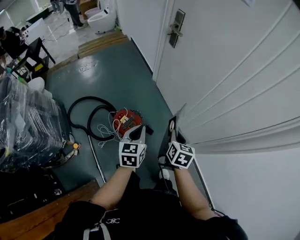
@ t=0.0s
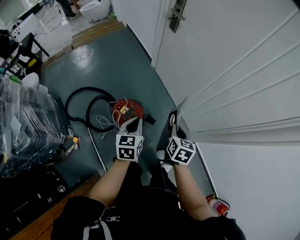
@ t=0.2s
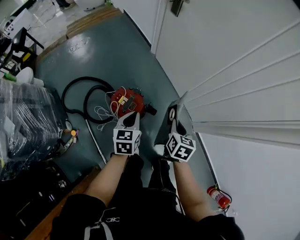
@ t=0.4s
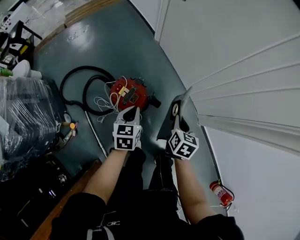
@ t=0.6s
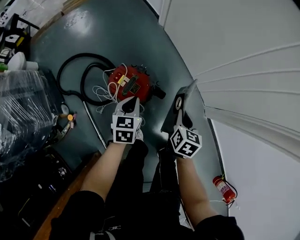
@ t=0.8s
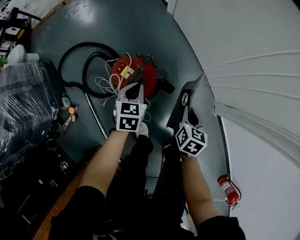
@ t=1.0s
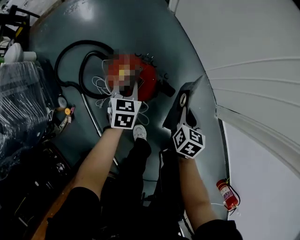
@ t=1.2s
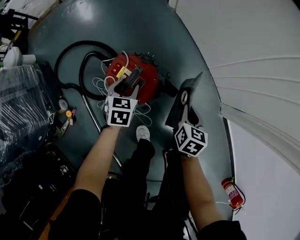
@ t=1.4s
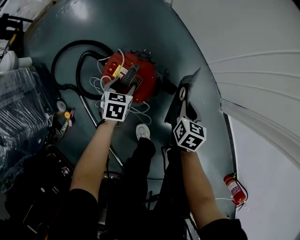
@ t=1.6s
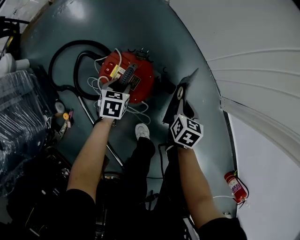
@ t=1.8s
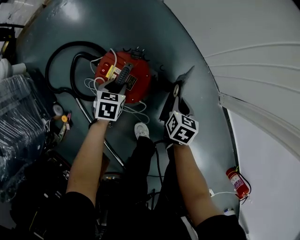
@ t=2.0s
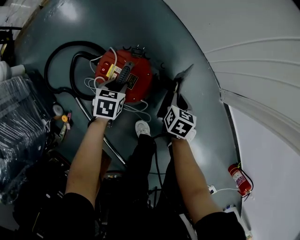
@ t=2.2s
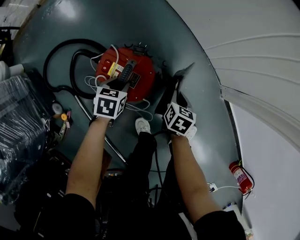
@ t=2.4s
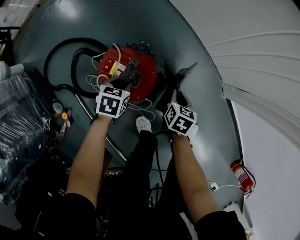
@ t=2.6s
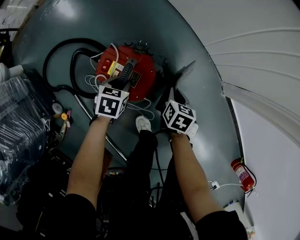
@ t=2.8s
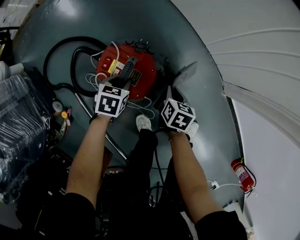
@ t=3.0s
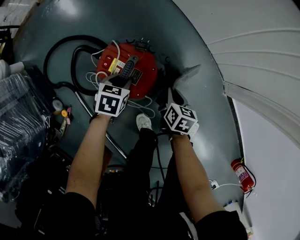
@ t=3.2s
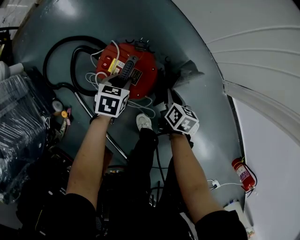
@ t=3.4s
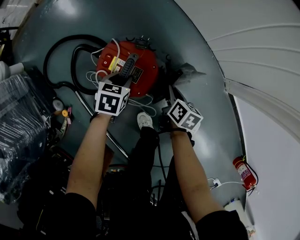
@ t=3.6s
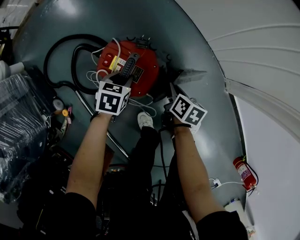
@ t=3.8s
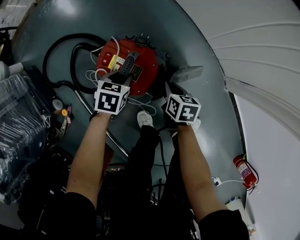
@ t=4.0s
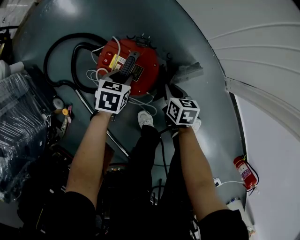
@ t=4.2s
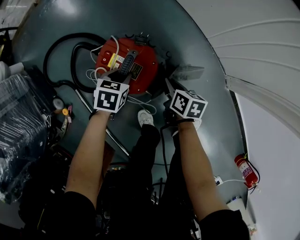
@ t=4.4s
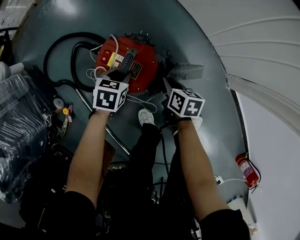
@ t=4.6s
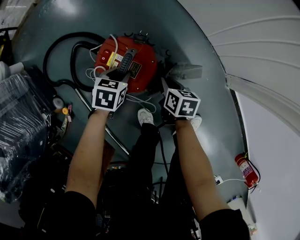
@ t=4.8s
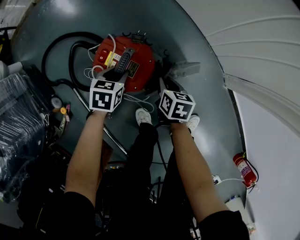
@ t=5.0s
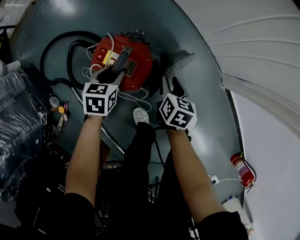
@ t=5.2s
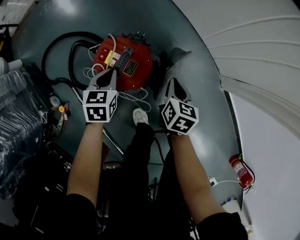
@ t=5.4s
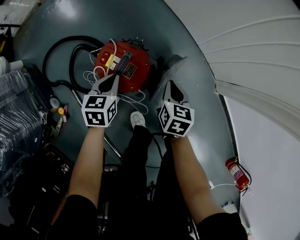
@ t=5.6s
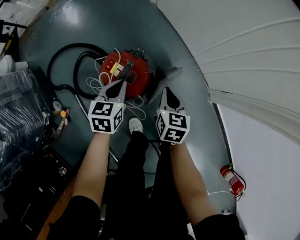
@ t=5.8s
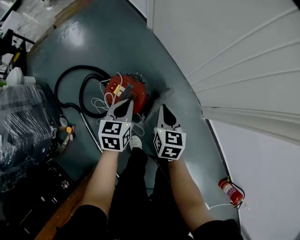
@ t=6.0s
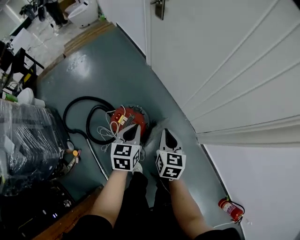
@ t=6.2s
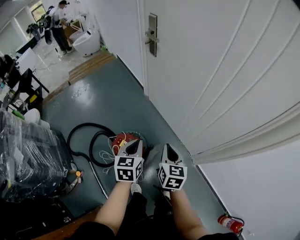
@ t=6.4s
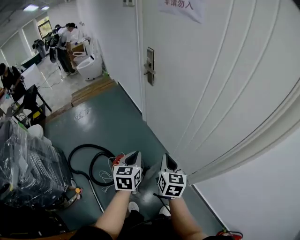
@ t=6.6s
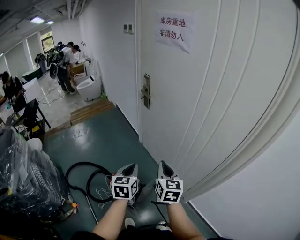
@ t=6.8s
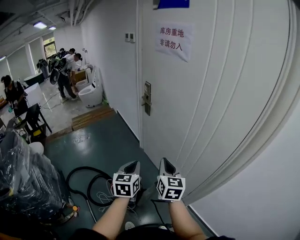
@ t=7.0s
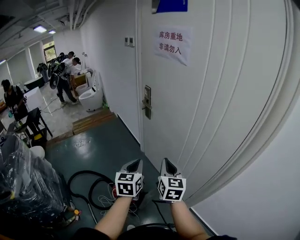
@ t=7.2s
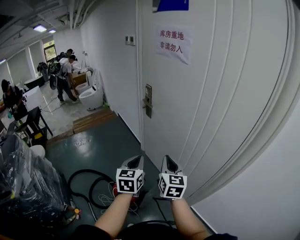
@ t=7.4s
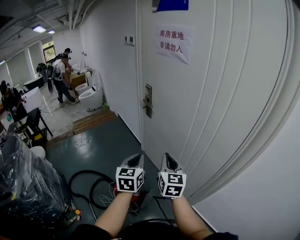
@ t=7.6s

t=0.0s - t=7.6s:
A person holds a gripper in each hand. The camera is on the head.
t=0.0s - t=1.6s: Both grippers travel together downward, about 40 cm. The left gripper tips its fingers downward by roughly 30 degrees, and opens its fingers.
t=1.6s - t=3.0s: The left gripper closes up; the right gripper travels downward and to the left by approximately 10 cm.
t=3.0s - t=4.6s: There are only small adjustments of the grippers.
t=4.6s - t=6.0s: Both grippers travel together upward, approximately 25 cm. The left gripper swivels approximately 30 degrees, and closes up. The right gripper swivels about 30 degrees, and opens, then closes again.
t=6.0s - t=7.6s: The grippers both shift upward by some 40 cm. The right gripper swivels some 30 degrees. Meanwhile the left gripper swivels about 20 degrees.

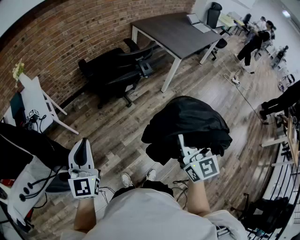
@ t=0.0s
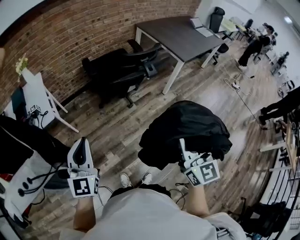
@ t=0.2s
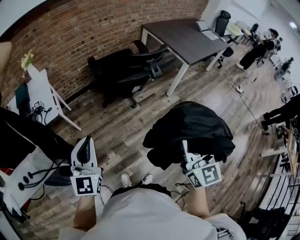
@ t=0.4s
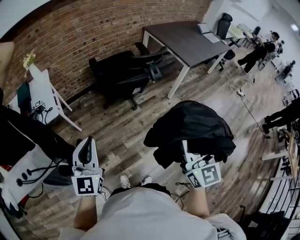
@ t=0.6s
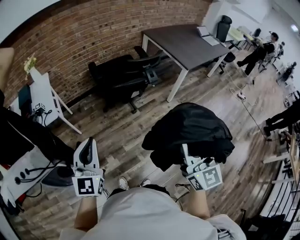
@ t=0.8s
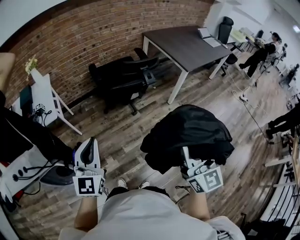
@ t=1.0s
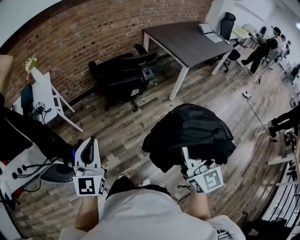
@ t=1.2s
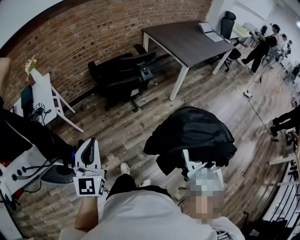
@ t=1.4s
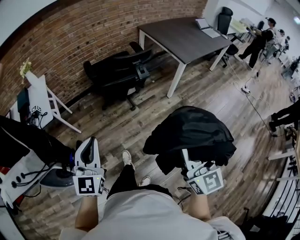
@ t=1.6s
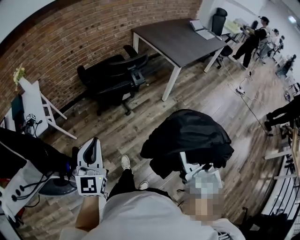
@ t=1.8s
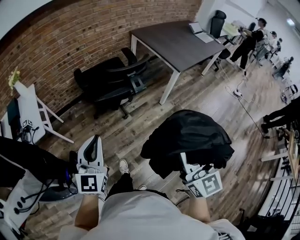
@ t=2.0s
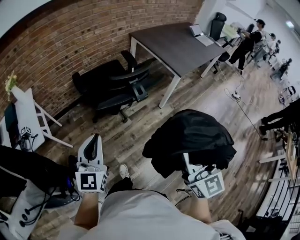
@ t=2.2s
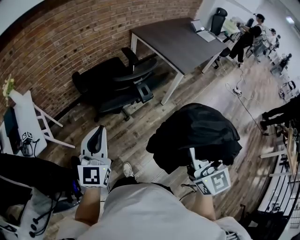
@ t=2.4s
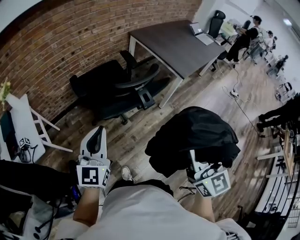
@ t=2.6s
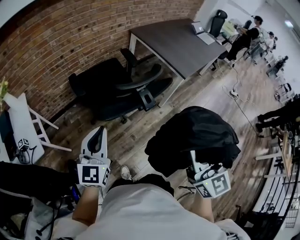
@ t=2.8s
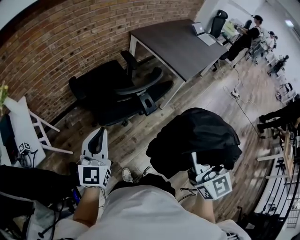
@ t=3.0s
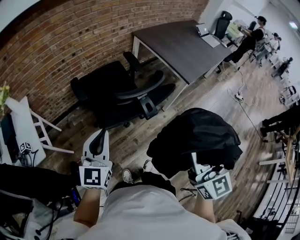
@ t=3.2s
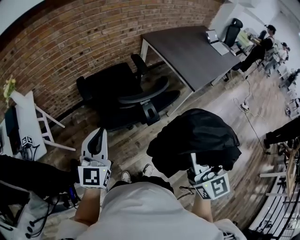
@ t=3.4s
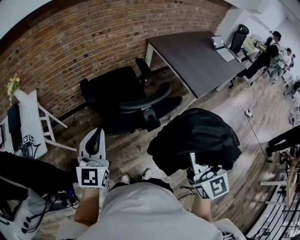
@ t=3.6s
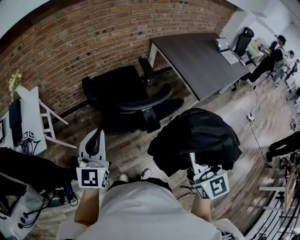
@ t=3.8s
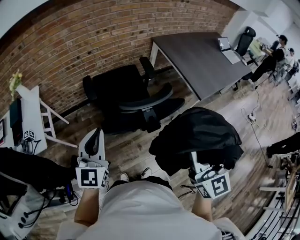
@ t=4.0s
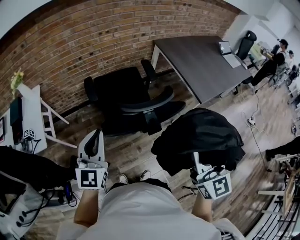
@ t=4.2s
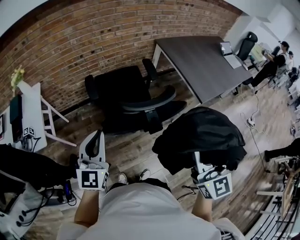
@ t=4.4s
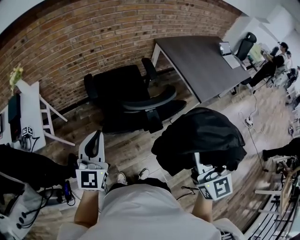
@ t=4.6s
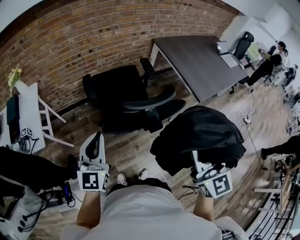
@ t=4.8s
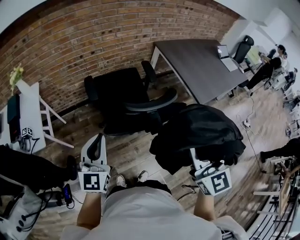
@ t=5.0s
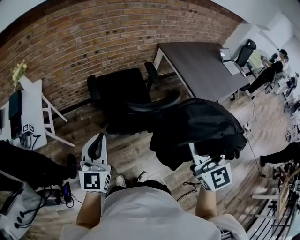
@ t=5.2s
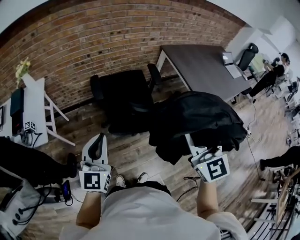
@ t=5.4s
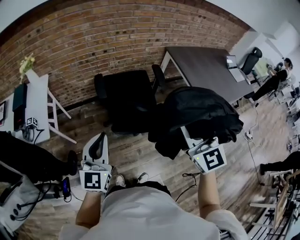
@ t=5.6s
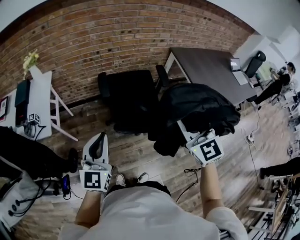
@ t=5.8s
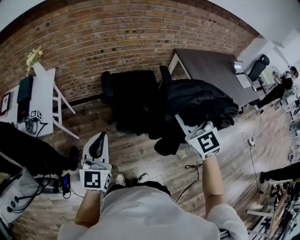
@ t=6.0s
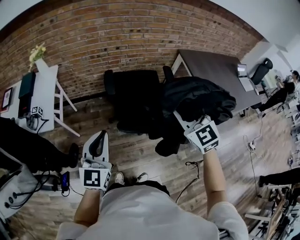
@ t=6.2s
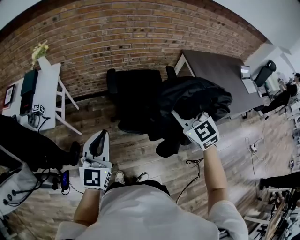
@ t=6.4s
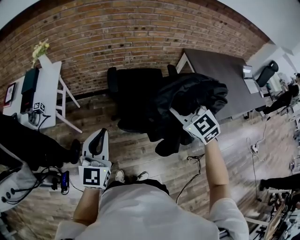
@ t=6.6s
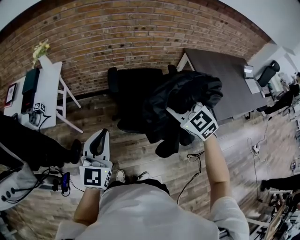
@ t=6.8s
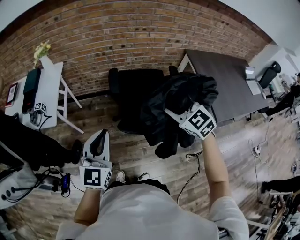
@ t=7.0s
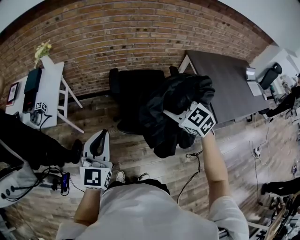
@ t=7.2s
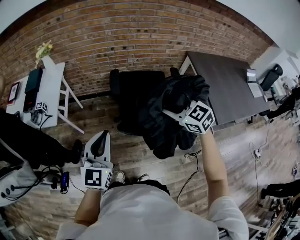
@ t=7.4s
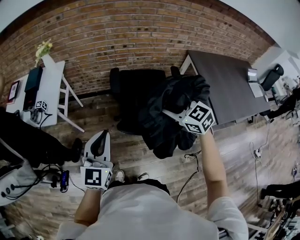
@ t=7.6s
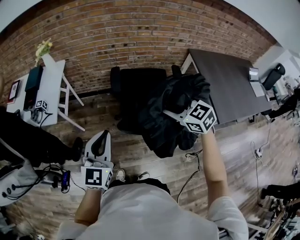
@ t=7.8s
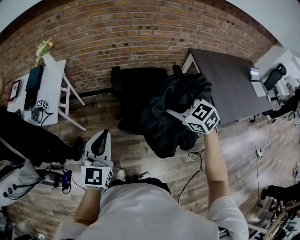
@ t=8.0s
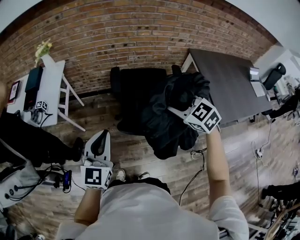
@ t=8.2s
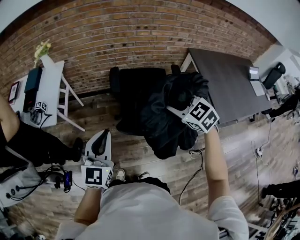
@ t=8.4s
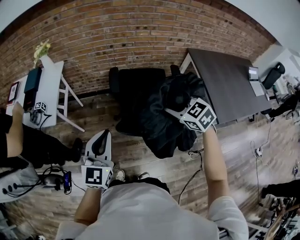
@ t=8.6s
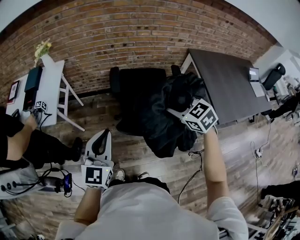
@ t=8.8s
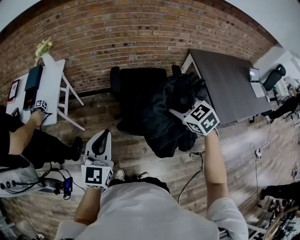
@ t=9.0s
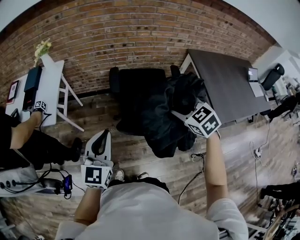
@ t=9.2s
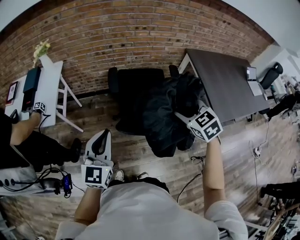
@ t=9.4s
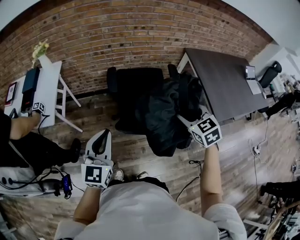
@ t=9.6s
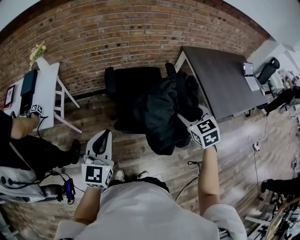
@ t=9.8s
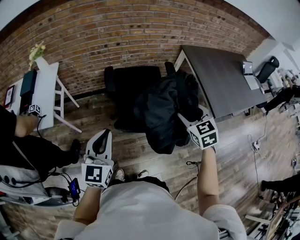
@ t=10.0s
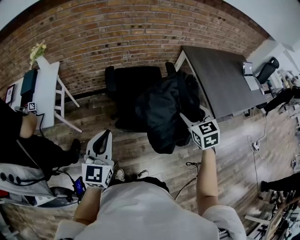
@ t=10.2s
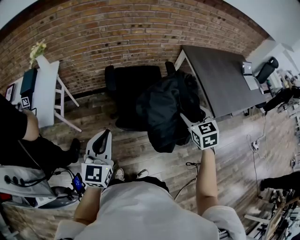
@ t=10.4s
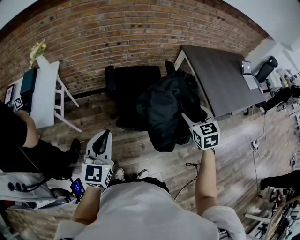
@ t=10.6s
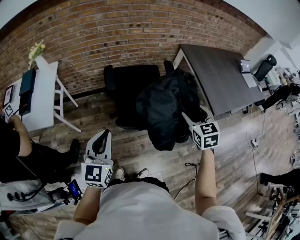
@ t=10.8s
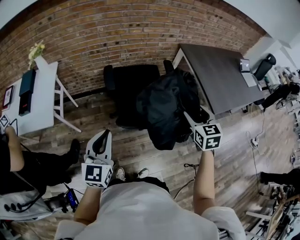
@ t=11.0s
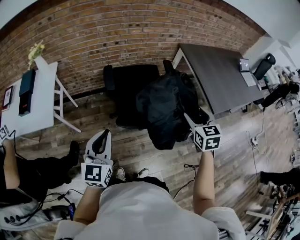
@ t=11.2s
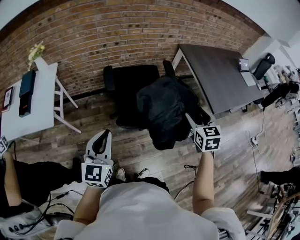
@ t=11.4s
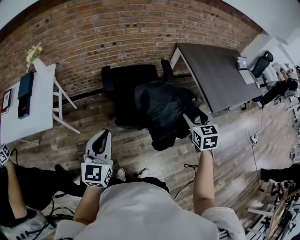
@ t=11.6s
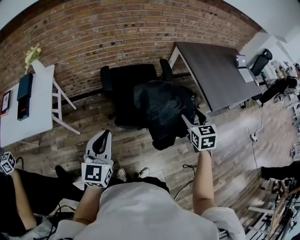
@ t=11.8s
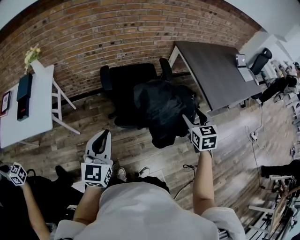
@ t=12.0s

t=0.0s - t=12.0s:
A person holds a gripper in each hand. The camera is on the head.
t=0.0s - t=1.6s: The two grippers go some 10 cm to the right.
t=1.6s - t=3.0s: Both grippers move forward, about 25 cm.
t=3.0s - t=4.4s: The right gripper moves forward and to the right, approximately 15 cm.
t=4.4s - t=6.0s: The right gripper shifts about 20 cm forward and to the left, and swivels about 30 degrees, while the left gripper goes about 5 cm to the left.
t=6.0s - t=7.6s: The right gripper shifts about 10 cm downward and forward, and rotates some 30 degrees.
t=7.6s - t=9.0s: There are only small adjustments of the grippers.
t=9.0s - t=10.4s: The right gripper is displaced to the right by roughly 10 cm, turns by approximately 30 degrees, and opens up.
t=10.4s - t=12.0s: The right gripper moves some 5 cm.

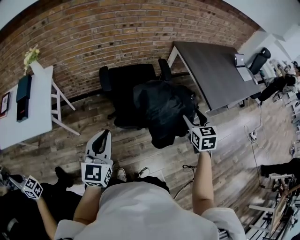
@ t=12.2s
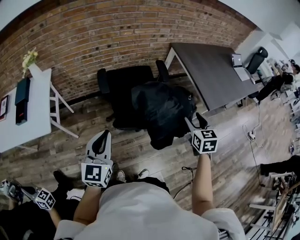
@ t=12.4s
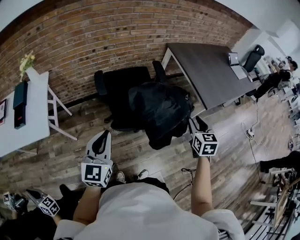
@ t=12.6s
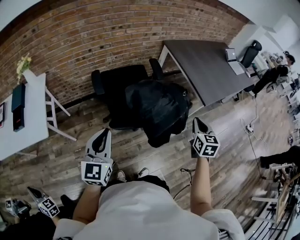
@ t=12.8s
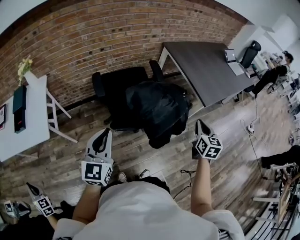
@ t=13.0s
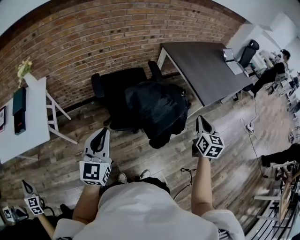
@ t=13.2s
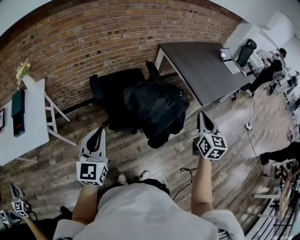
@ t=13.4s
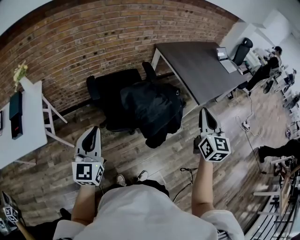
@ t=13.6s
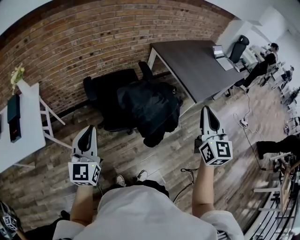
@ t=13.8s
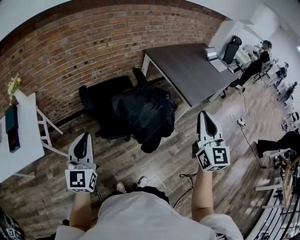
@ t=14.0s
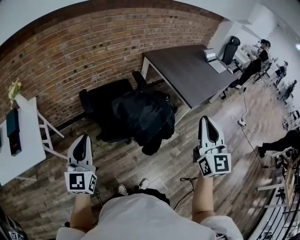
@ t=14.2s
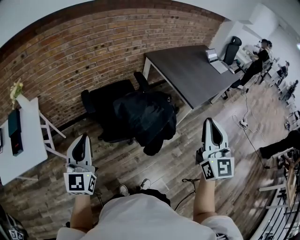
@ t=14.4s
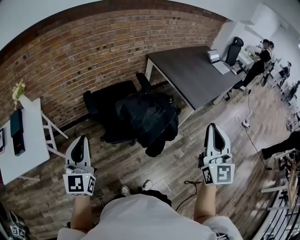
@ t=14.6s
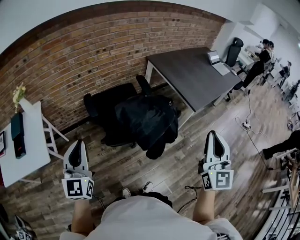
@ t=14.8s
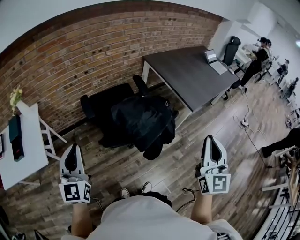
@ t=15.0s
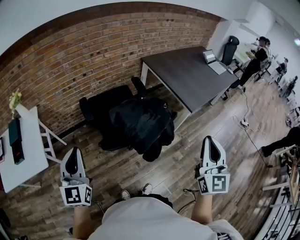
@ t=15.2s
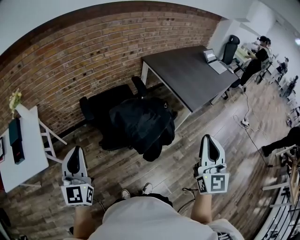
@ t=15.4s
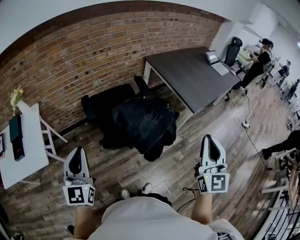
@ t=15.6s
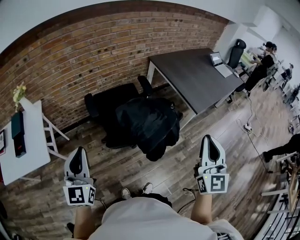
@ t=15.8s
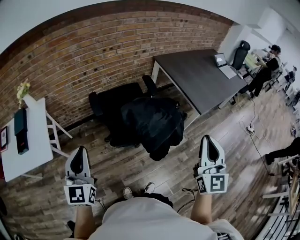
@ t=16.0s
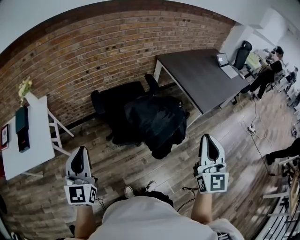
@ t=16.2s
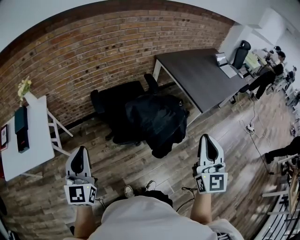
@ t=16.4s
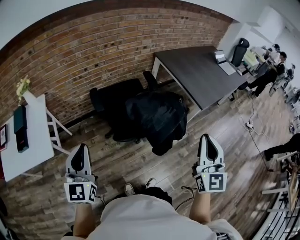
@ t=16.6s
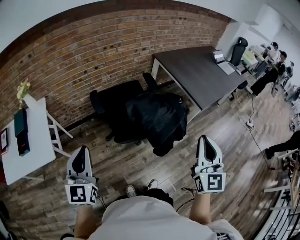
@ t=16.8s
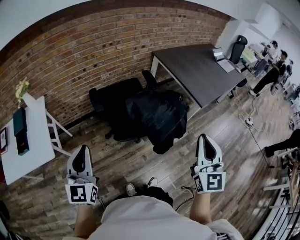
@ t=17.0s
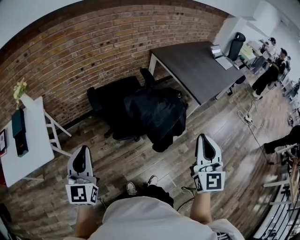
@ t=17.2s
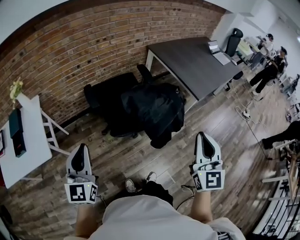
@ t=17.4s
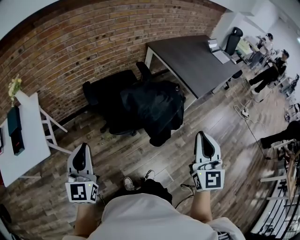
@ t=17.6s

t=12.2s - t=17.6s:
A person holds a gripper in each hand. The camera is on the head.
t=12.2s - t=13.6s: The right gripper travels upward, backward and to the right by approximately 15 cm, rotates some 30 degrees, and closes.
t=13.6s - t=15.0s: The right gripper goes about 10 cm backward and upward, while the left gripper changes place by some 5 cm.
t=15.0s - t=16.2s: The right gripper goes some 5 cm to the left.
t=16.2s - t=17.6s: The right gripper ends up about 5 cm from where it was.
